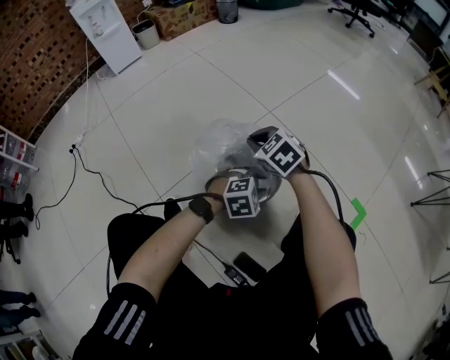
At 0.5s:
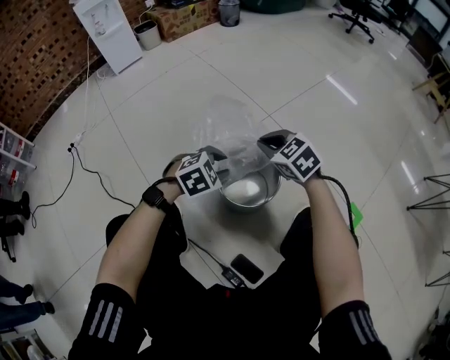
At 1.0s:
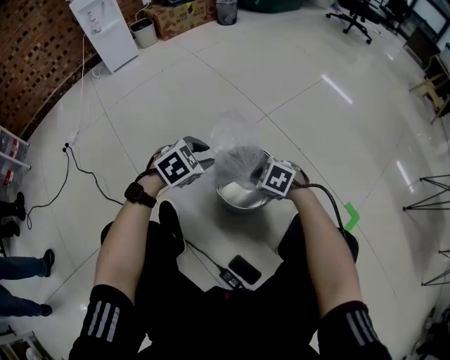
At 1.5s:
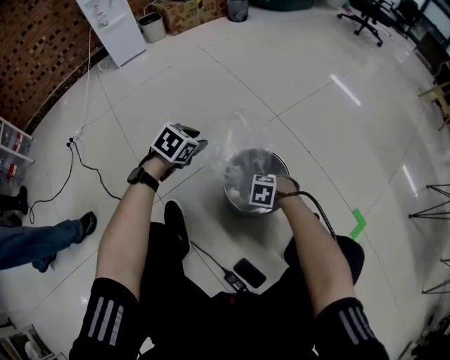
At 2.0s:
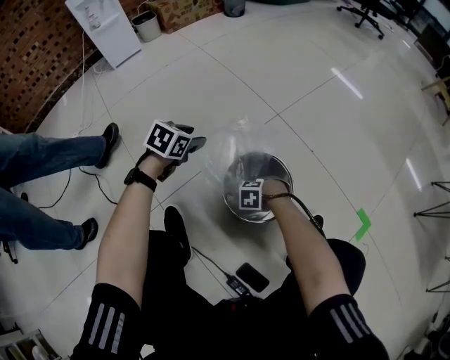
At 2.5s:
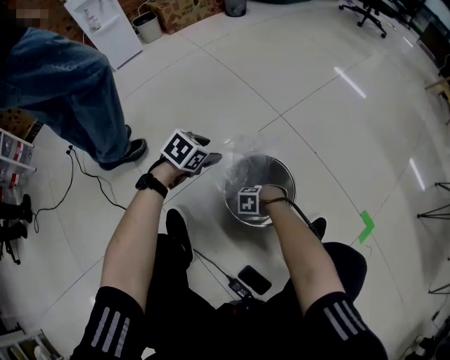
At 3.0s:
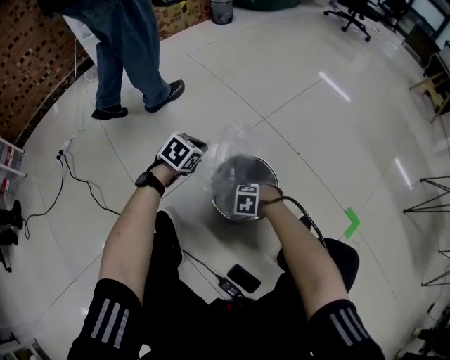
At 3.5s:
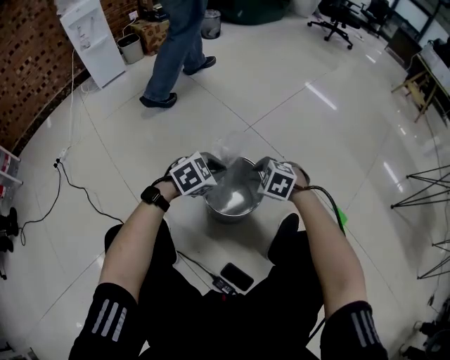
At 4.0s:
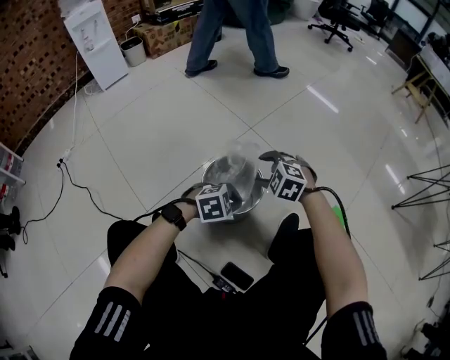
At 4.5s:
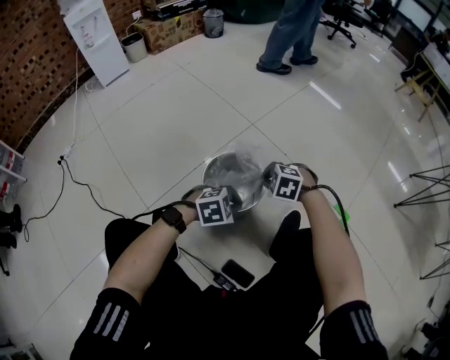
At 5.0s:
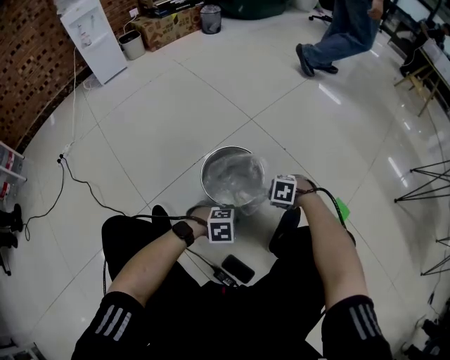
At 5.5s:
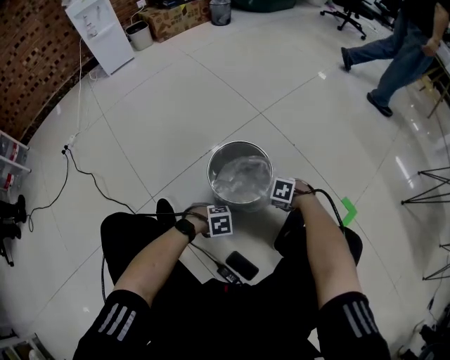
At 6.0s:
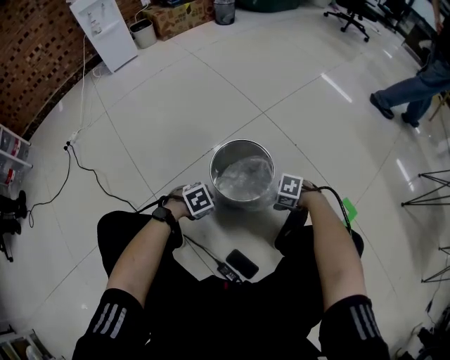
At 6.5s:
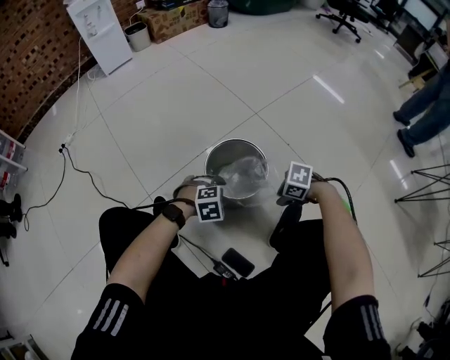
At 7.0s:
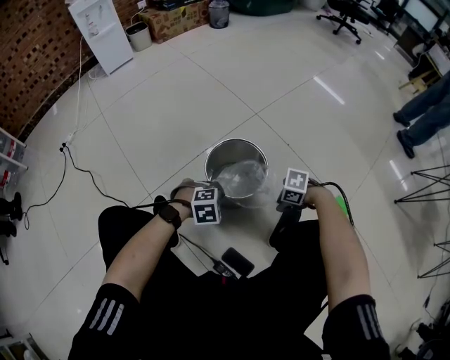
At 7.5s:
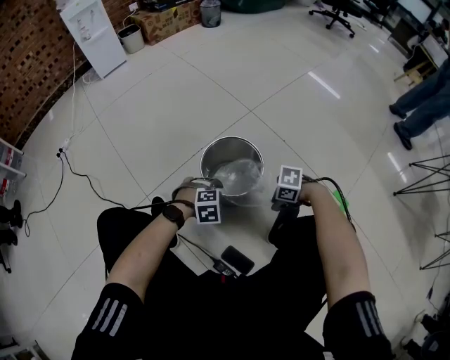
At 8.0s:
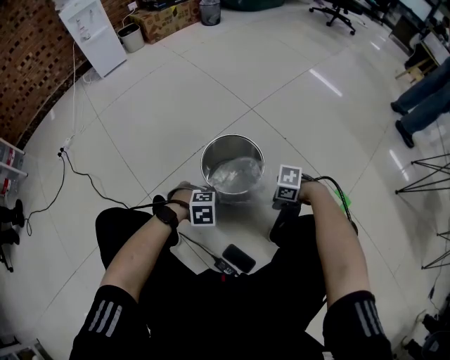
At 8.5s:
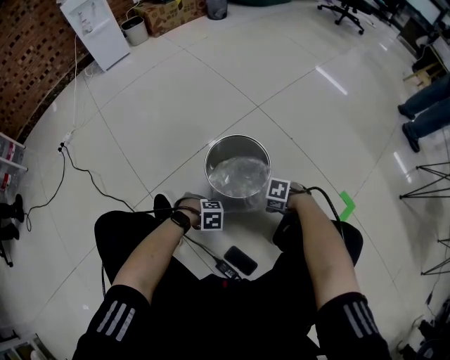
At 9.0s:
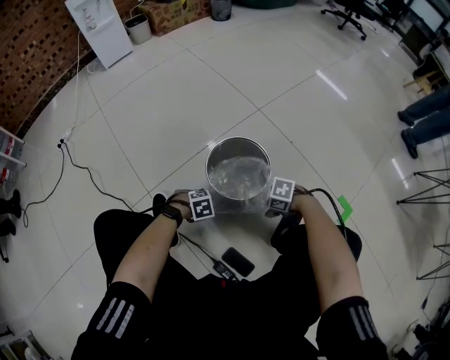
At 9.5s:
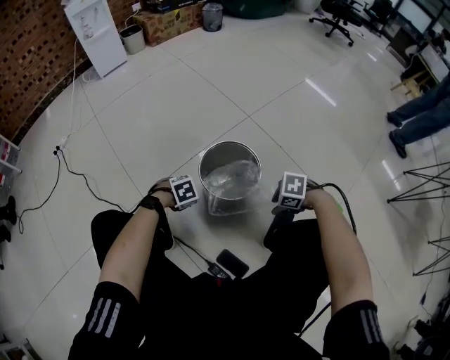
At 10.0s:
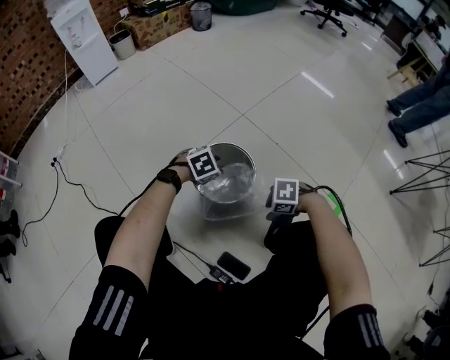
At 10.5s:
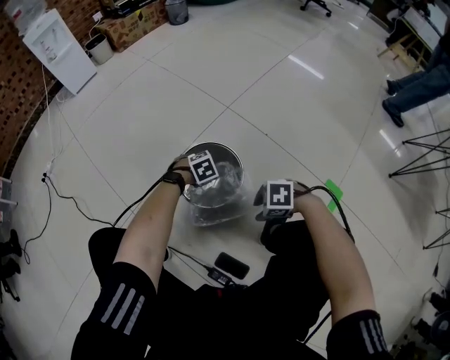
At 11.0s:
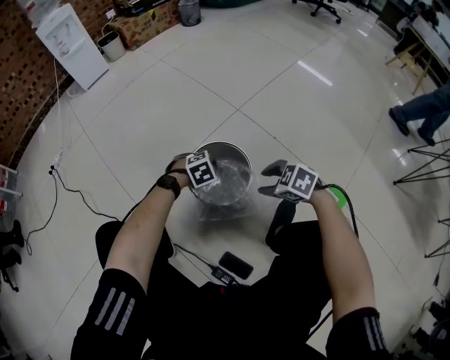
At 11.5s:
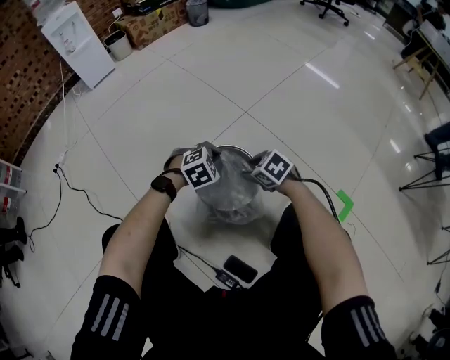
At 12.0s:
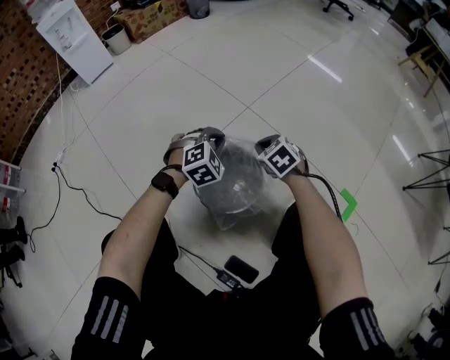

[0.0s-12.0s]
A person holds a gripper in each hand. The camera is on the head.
0.0s to 2.0s: The right gripper is displaced downward by approximately 25 cm, and tilts its fingers some 40 degrees downward. The left gripper moves about 35 cm, and twists approximately 50 degrees counterclockwise, seen from behind.
2.0s to 4.0s: The left gripper moves roughly 5 cm upward and comes back, rolls clockwise, seen from behind, by approximately 50 degrees, and closes up; the right gripper shifts roughly 25 cm upward, turns by roughly 40 degrees, and opens its fingers.
4.0s to 6.0s: The left gripper changes place by roughly 15 cm, and swivels about 30 degrees. Meanwhile the right gripper heads downward, covering about 20 cm, changes its angle by roughly 50 degrees, and closes.
6.0s to 8.0s: The left gripper changes place by some 10 cm, turns by roughly 30 degrees, and opens, then closes once more. The right gripper ends up about 5 cm from where it was.
8.0s to 10.0s: The right gripper moves some 10 cm downward and comes back. The left gripper reaches approximately 10 cm downward, then returns, and opens up.
10.0s to 12.0s: The left gripper ends up about 10 cm from where it was, swivels some 30 degrees, and closes up. The right gripper shifts by some 25 cm, turns by some 50 degrees, and closes its fingers.

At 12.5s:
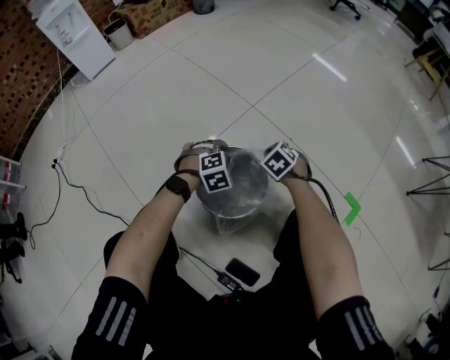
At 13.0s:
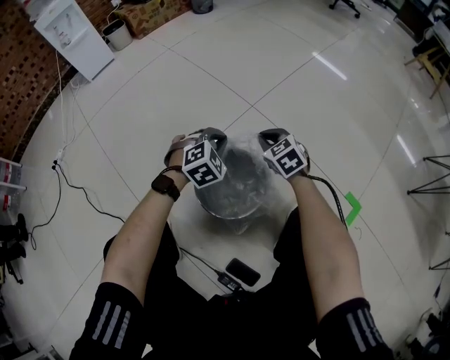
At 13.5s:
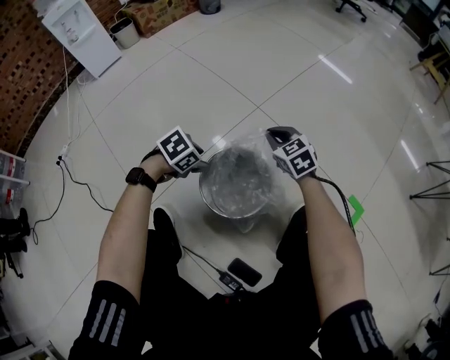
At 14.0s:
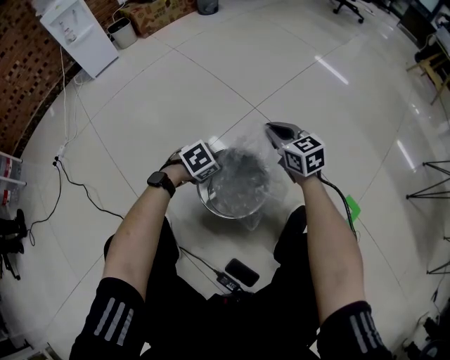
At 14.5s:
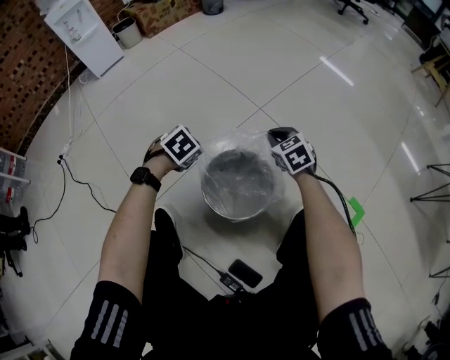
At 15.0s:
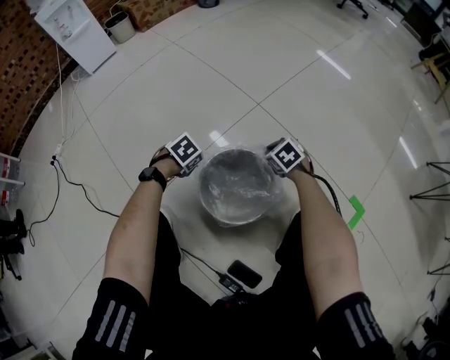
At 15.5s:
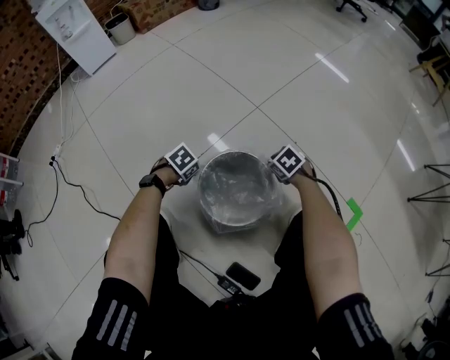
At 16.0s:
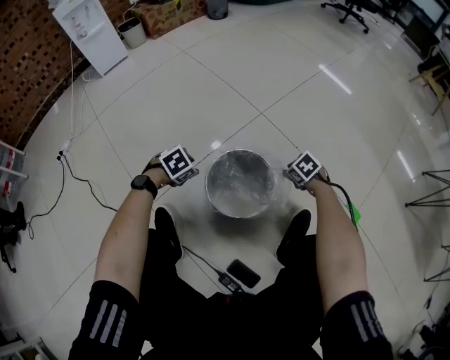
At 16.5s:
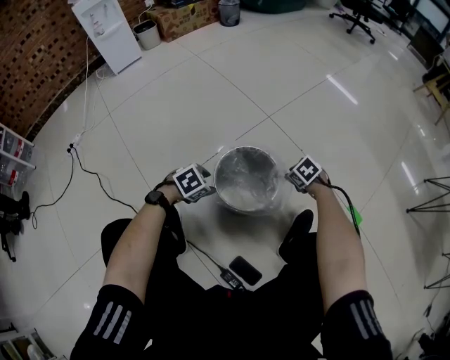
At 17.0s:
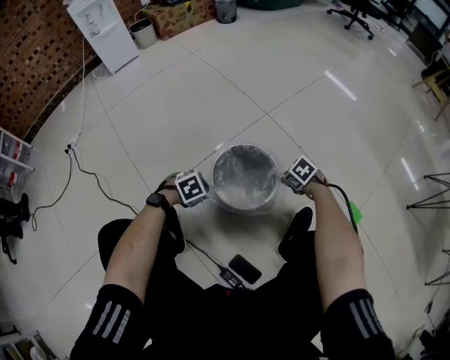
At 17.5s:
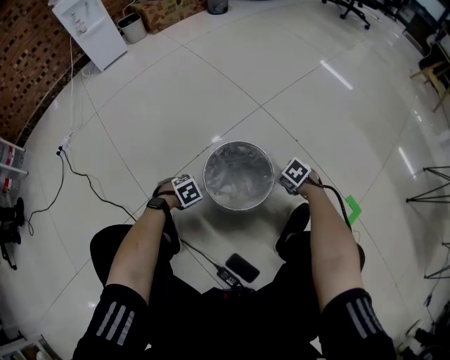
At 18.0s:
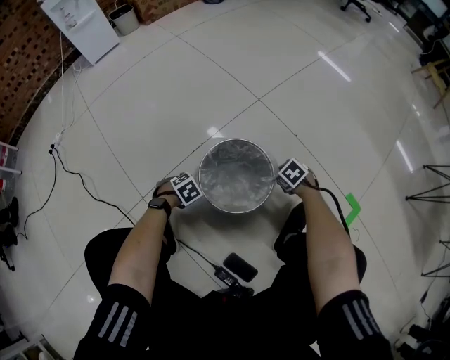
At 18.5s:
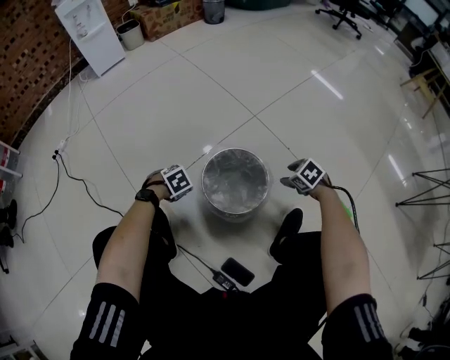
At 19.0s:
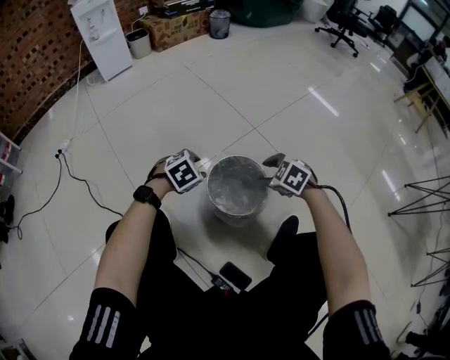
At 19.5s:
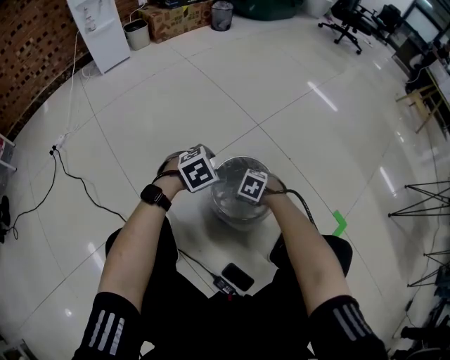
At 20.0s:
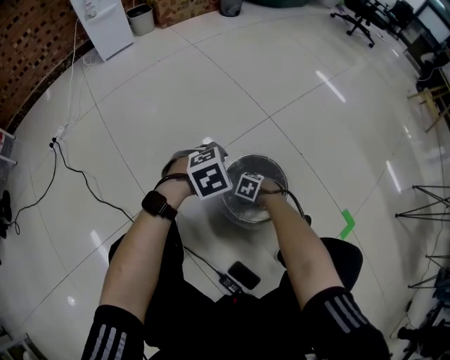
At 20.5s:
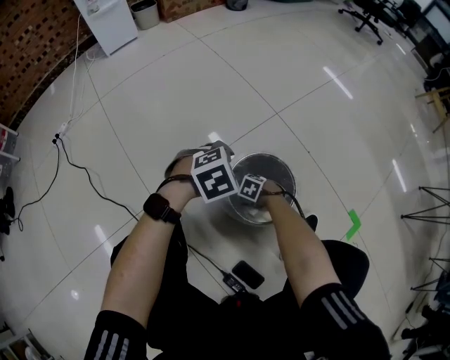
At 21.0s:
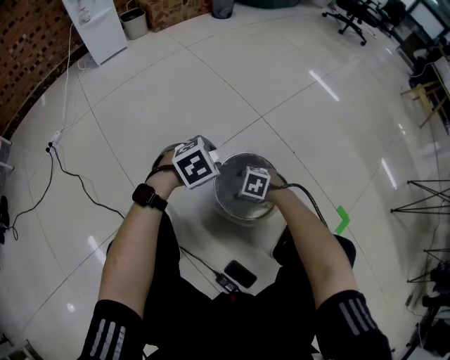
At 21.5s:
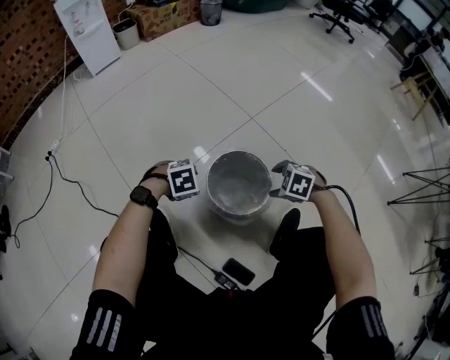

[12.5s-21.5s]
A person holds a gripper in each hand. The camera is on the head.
12.5s to 14.5s: The left gripper swings up and down, approximately 10 cm each way, with 2 reversals, rotates about 30 degrees, and opens and closes again; the right gripper goes some 10 cm upward, and swivels approximately 20 degrees.
14.5s to 17.0s: The left gripper changes place by some 20 cm, and opens, then closes again. Meanwhile the right gripper changes place by some 20 cm, and swivels about 40 degrees.
17.0s to 19.5s: The left gripper travels upward by approximately 15 cm, and opens up, while the right gripper moves up and down over some 25 cm, changing direction 2 times, swivels some 20 degrees, and opens its fingers.
19.5s to 21.5s: The right gripper moves roughly 15 cm. The left gripper travels downward by approximately 10 cm, and changes its angle by about 20 degrees.

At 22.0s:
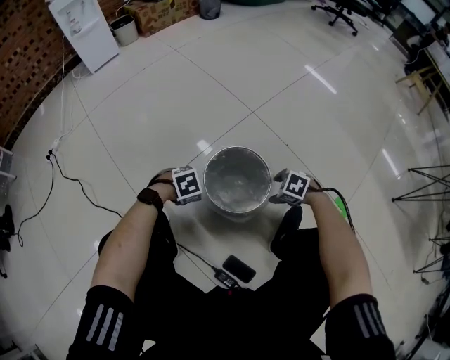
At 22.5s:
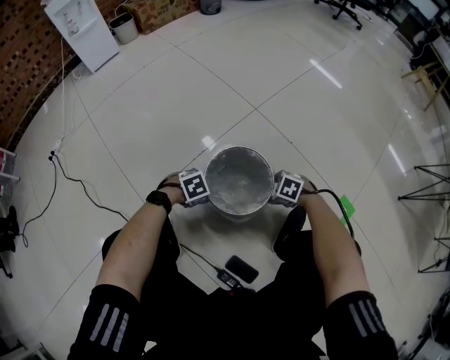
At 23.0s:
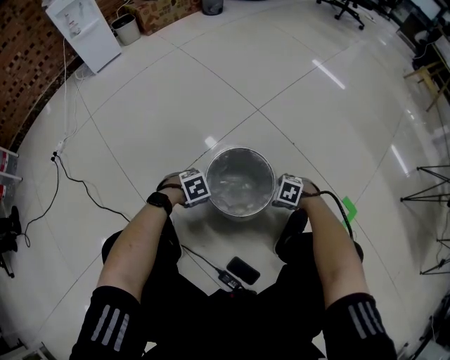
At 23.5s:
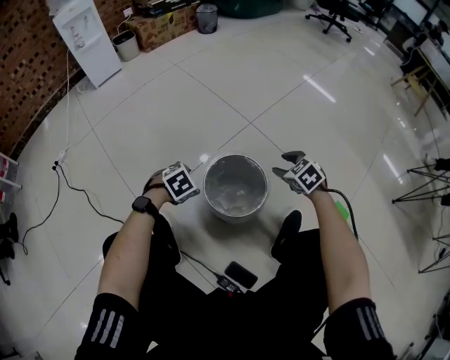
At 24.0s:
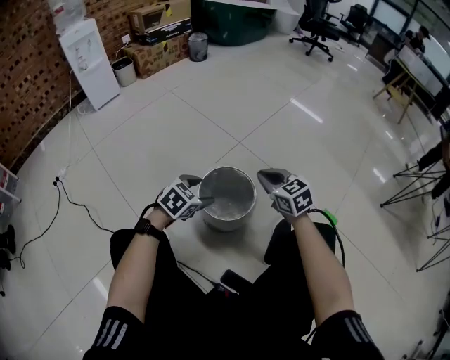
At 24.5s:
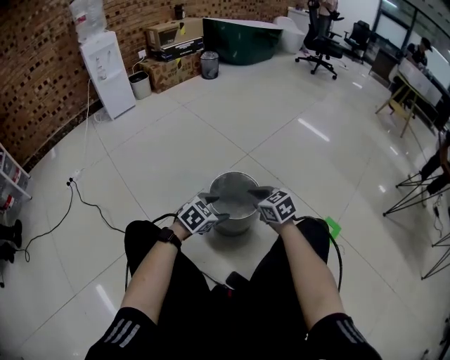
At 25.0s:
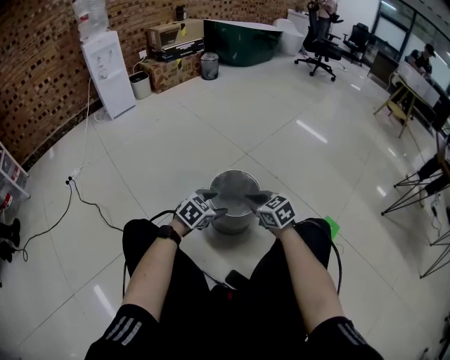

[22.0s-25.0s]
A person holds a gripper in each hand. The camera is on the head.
22.0s to 23.5s: The left gripper goes about 5 cm upward. The right gripper travels upward by about 10 cm, and changes its angle by about 30 degrees.
23.5s to 25.0s: The right gripper travels backward, to the left and upward by roughly 20 cm, changes its angle by roughly 20 degrees, and closes; the left gripper travels backward, to the right and upward by roughly 20 cm, and tips its fingers upward by some 30 degrees.

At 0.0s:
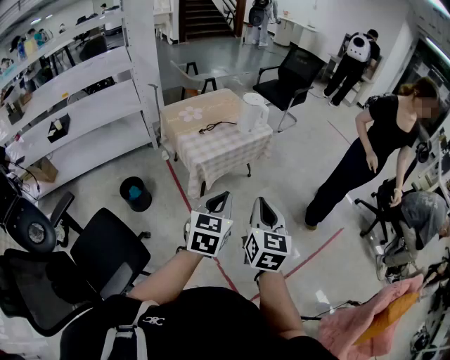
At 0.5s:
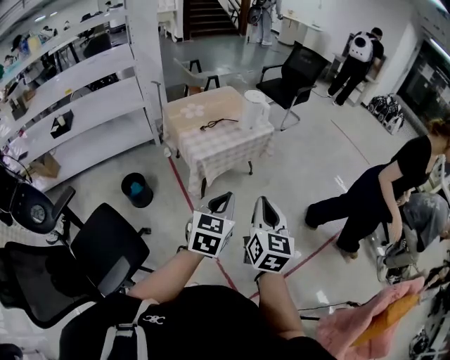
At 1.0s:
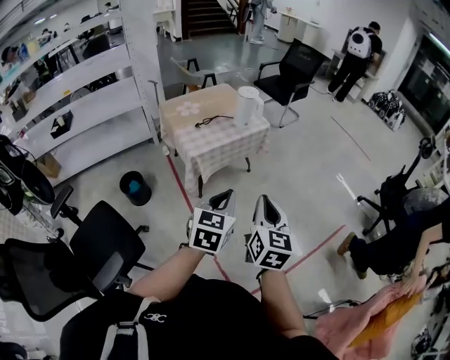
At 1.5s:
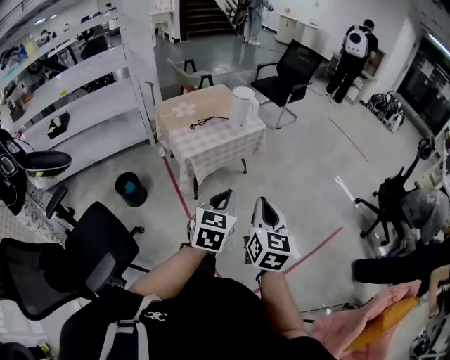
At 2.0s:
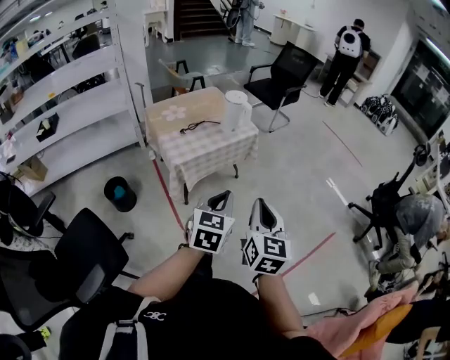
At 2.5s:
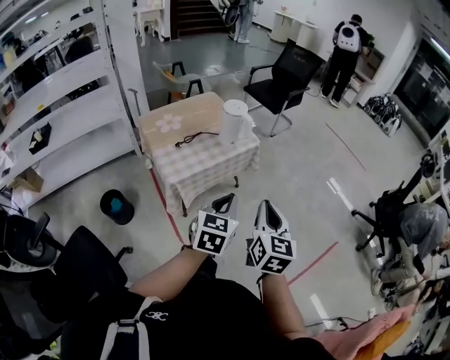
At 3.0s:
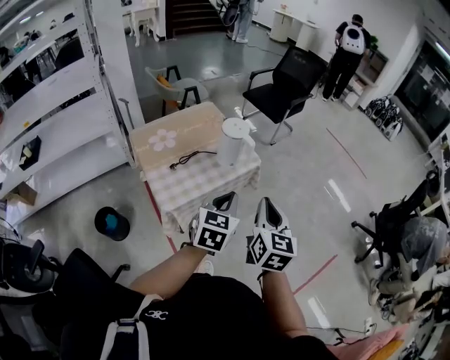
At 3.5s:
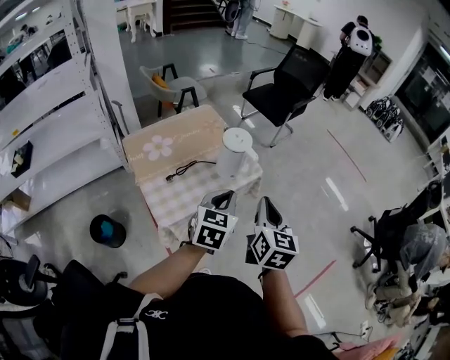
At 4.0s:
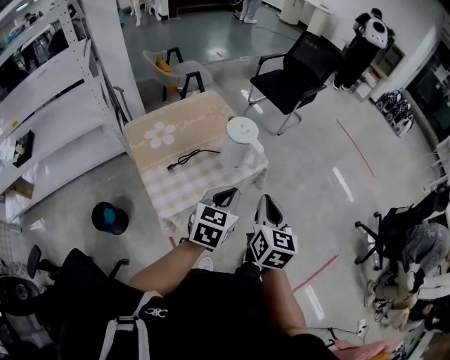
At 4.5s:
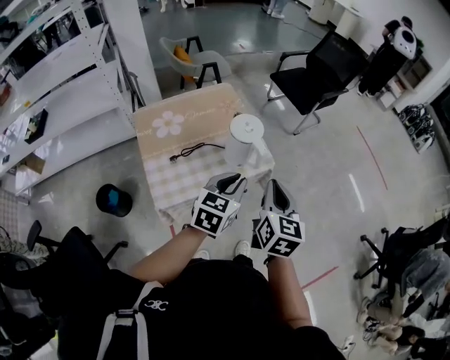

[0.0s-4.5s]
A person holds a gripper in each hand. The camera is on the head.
0.0s to 2.0s: The grippers both shift to the right and forward by some 10 cm.
2.0s to 4.5s: The pair of grippers is taken forward, approximately 50 cm.
